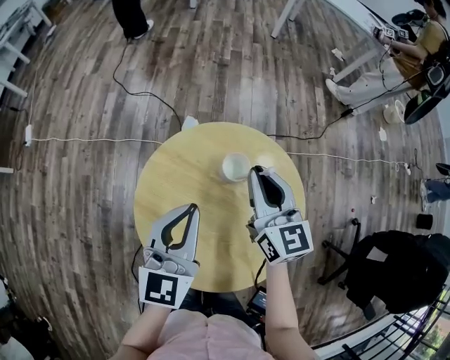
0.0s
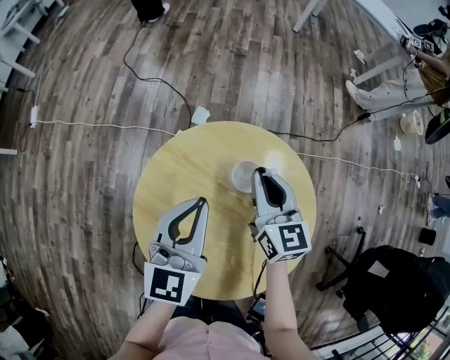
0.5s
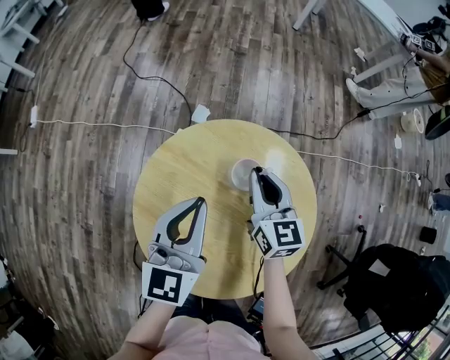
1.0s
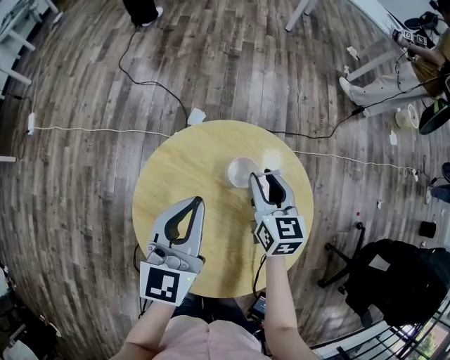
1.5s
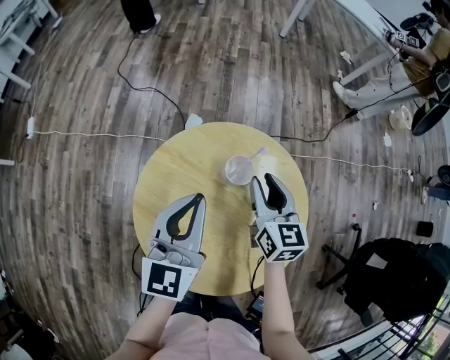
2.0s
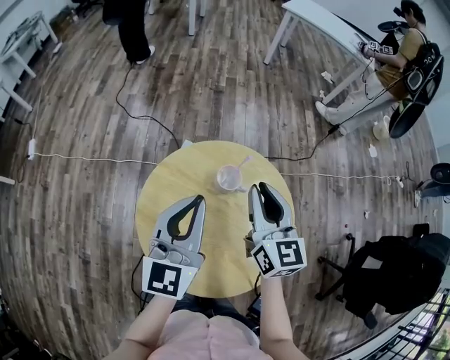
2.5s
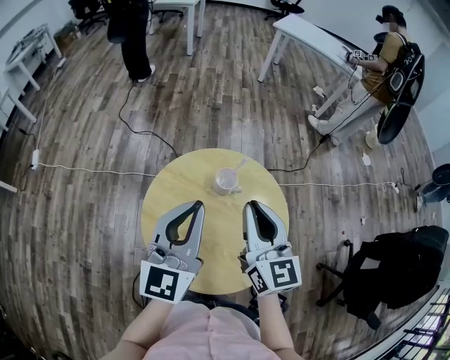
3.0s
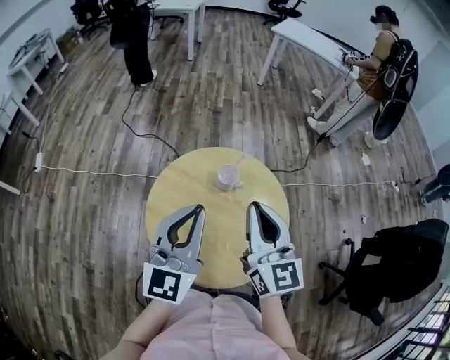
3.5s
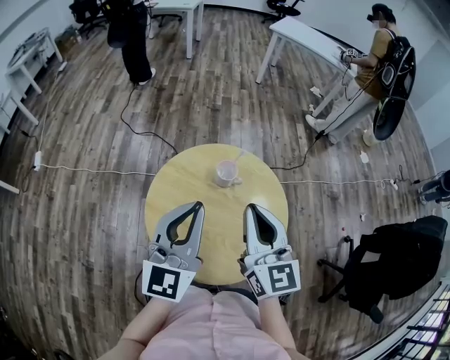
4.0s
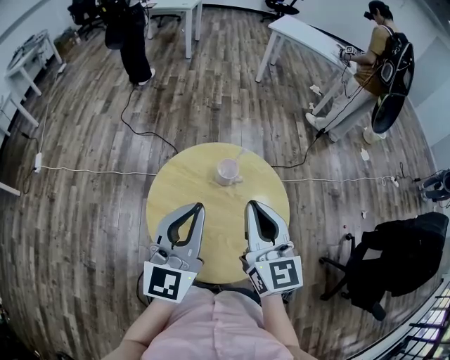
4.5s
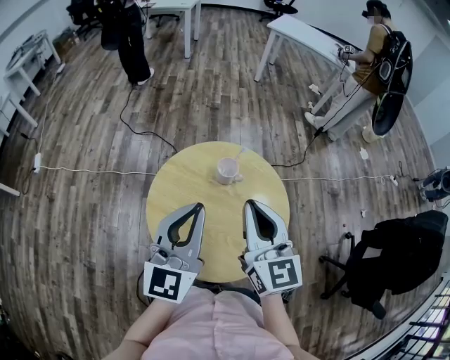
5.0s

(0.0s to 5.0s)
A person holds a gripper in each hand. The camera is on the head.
0.0s - 2.5s: The left gripper moves upward, some 5 cm. The right gripper reaches about 10 cm downward, then returns.
2.5s - 5.0s: Both grippers travel together backward and upward, approximately 15 cm.

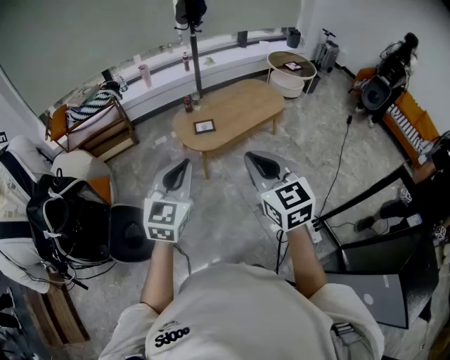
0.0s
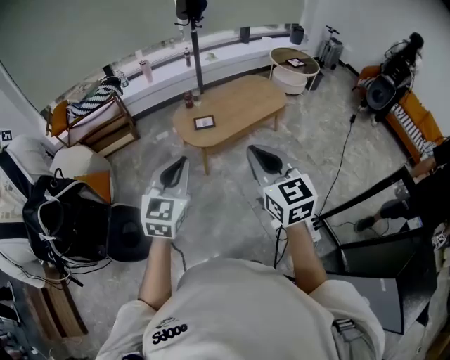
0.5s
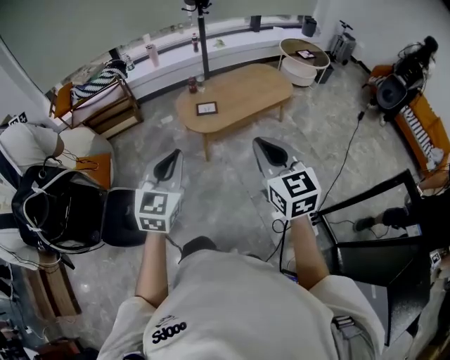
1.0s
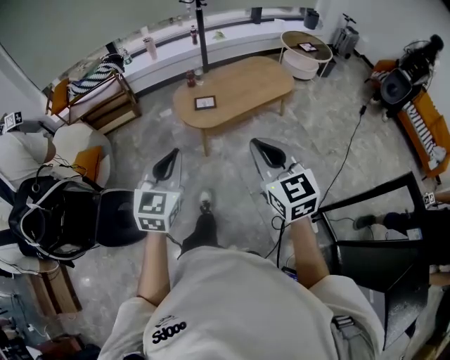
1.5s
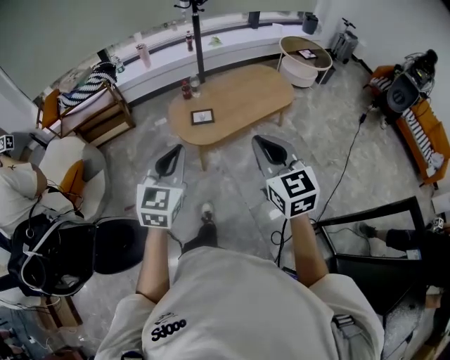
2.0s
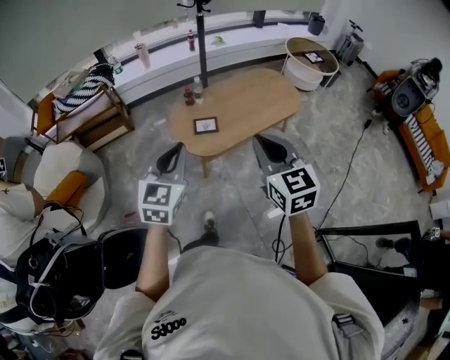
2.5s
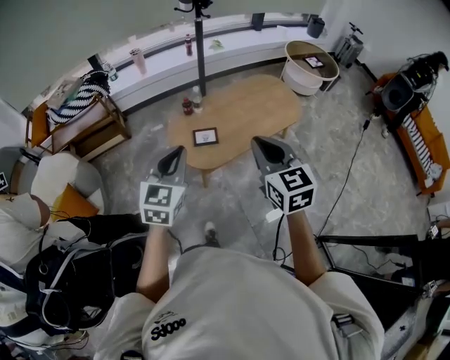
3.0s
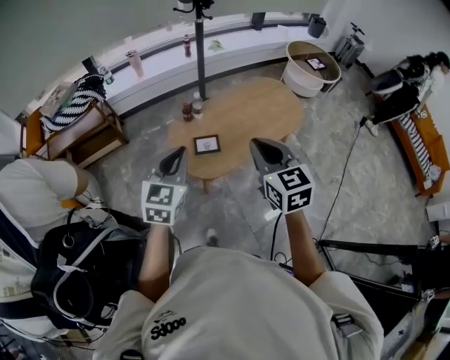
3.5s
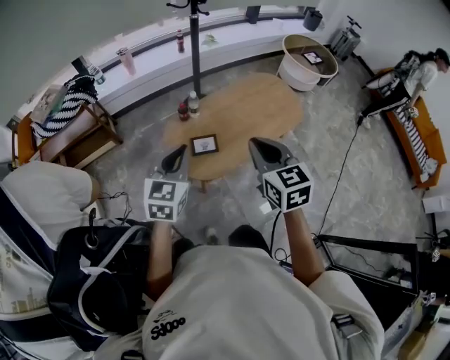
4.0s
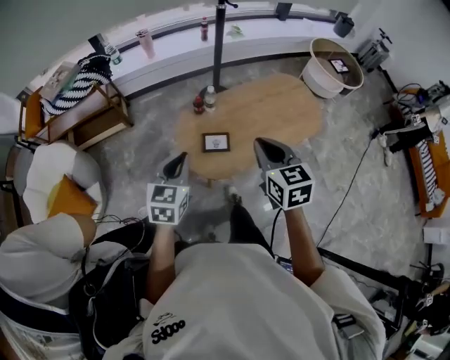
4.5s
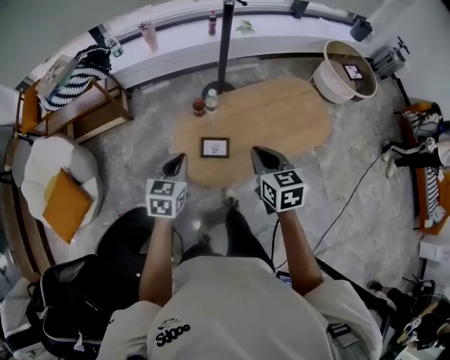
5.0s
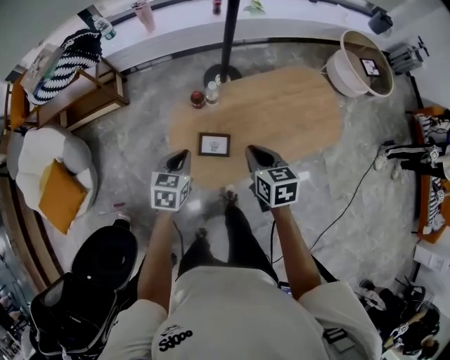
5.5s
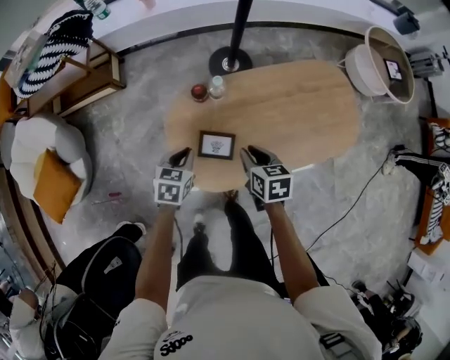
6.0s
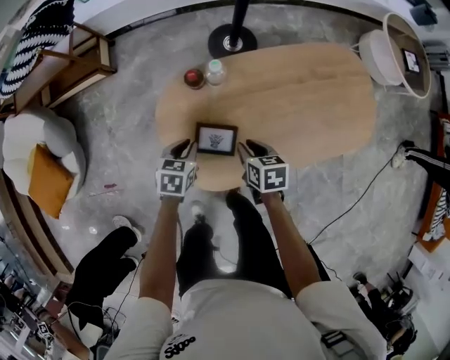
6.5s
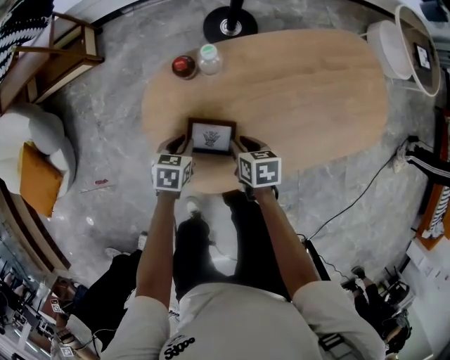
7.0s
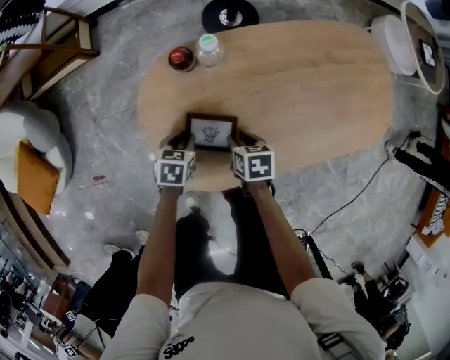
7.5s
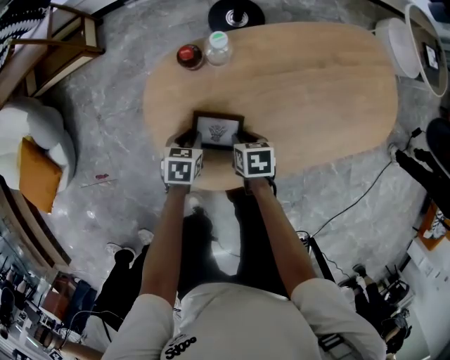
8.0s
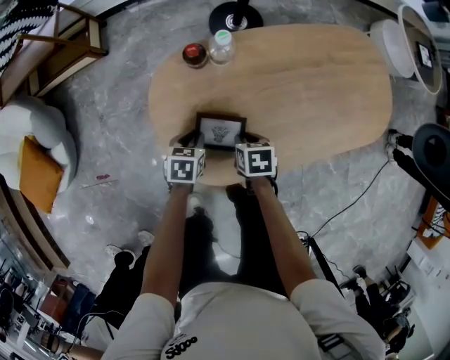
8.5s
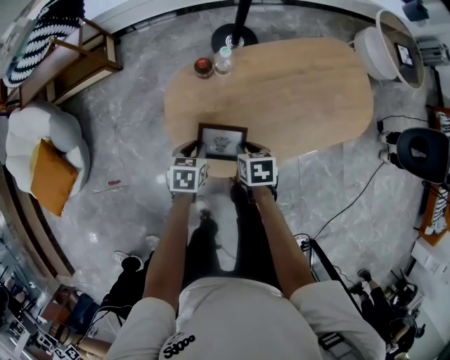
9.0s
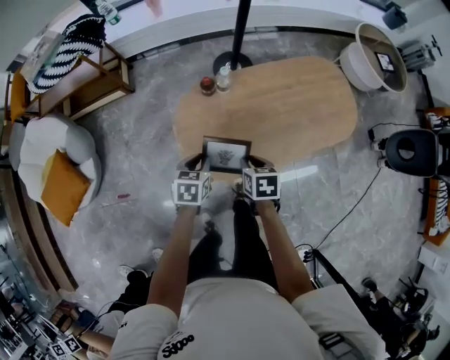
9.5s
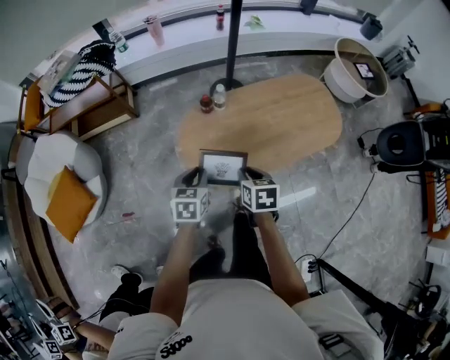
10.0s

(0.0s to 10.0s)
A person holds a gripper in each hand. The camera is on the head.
0.0s - 2.0s: The left gripper goes about 15 cm forward, while the right gripper travels forward and to the right by approximately 20 cm.
2.0s - 4.0s: The two grippers go roughly 35 cm forward.
4.0s - 6.0s: The grippers both shift downward and forward by approximately 50 cm. The right gripper turns by some 40 degrees; the left gripper angles its fingers downward, by roughly 30 degrees.
6.0s - 8.0s: The two grippers go some 25 cm downward. The right gripper rotates approximately 20 degrees.
8.0s - 10.0s: Both grippers travel together upward and backward, approximately 40 cm. The right gripper swivels roughly 20 degrees, while the left gripper turns by about 20 degrees.

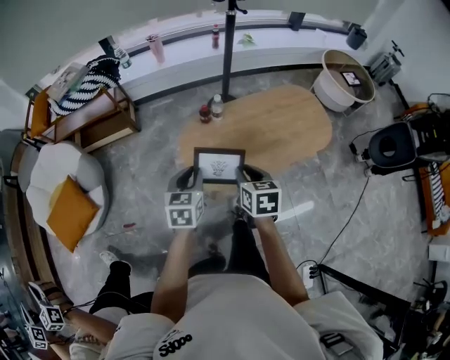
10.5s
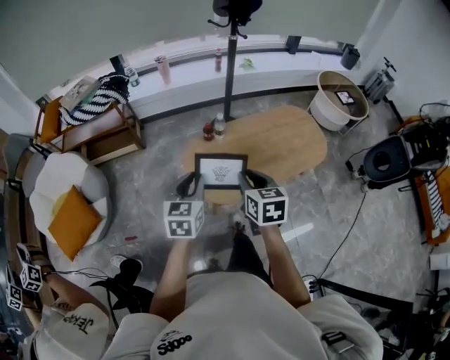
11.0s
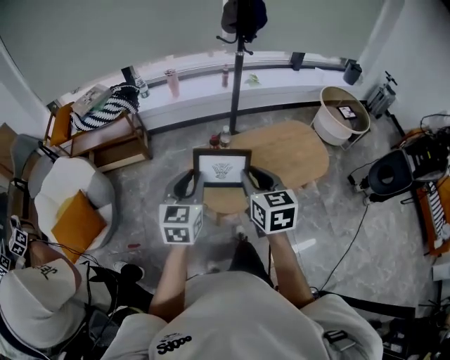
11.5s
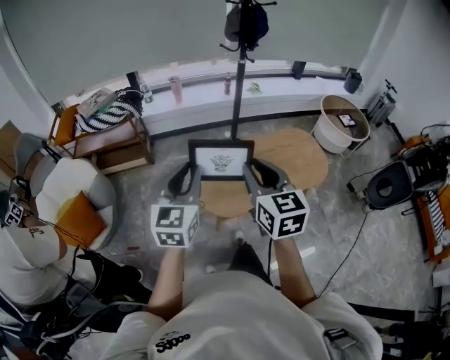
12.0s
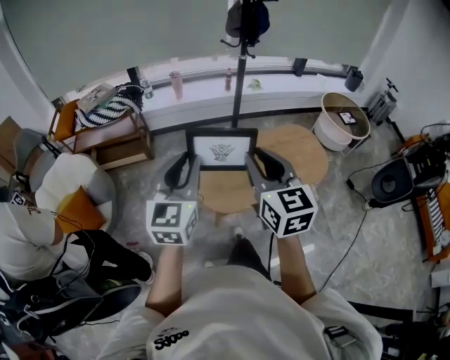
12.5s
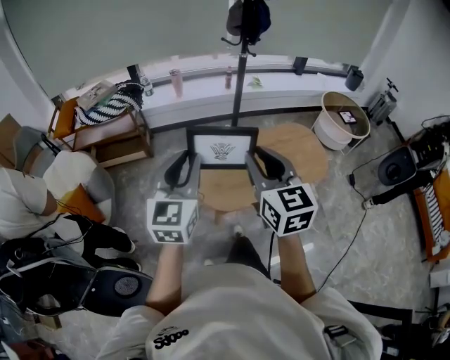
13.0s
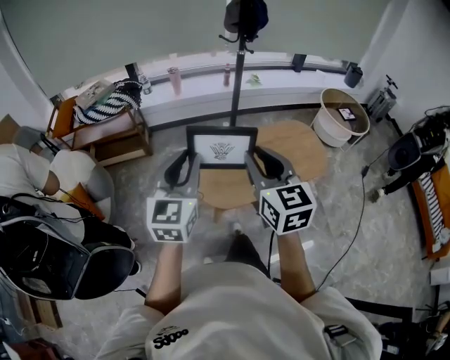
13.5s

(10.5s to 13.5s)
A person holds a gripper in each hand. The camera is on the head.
10.5s - 12.0s: Both grippers move upward, roughly 25 cm. The right gripper swivels about 30 degrees, while the left gripper turns by about 30 degrees.
12.0s - 13.5s: The grippers make only small movements.

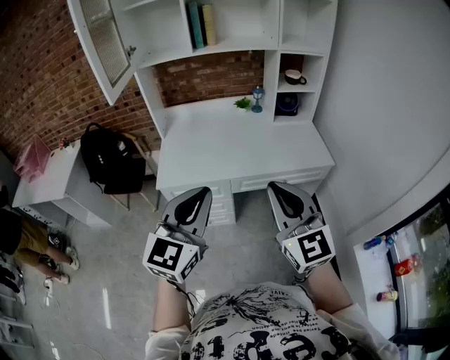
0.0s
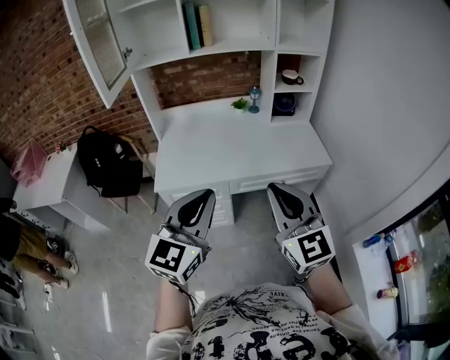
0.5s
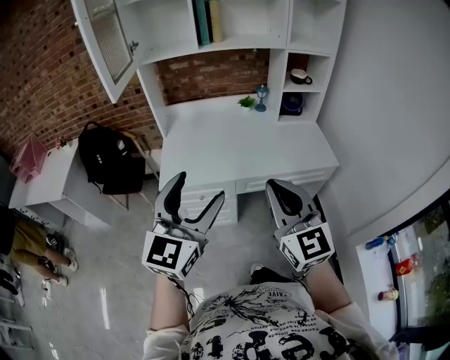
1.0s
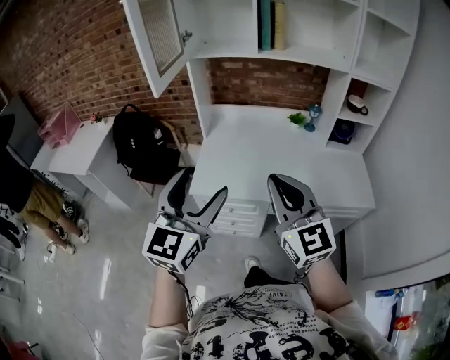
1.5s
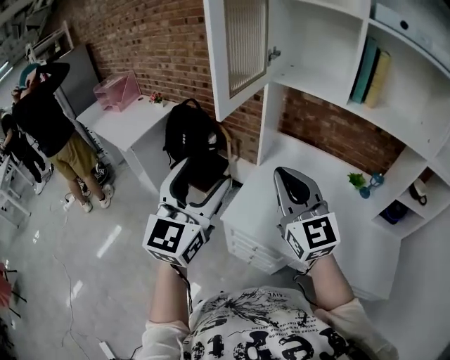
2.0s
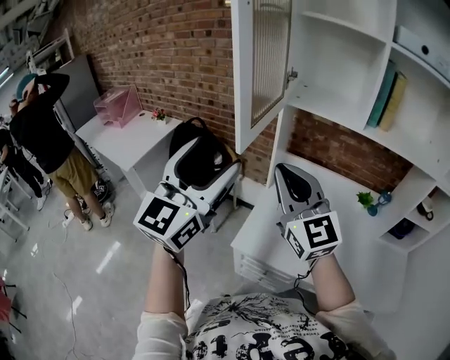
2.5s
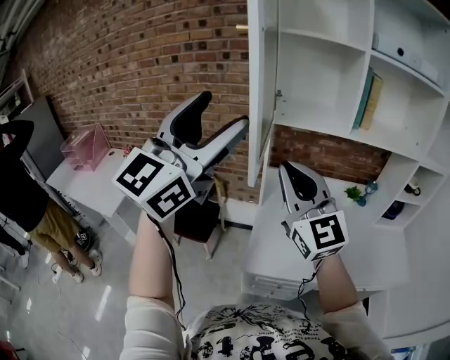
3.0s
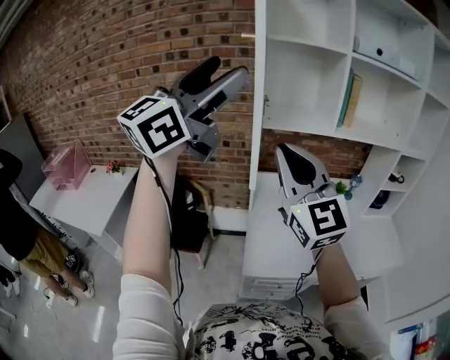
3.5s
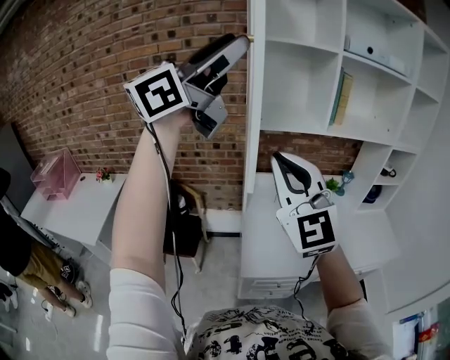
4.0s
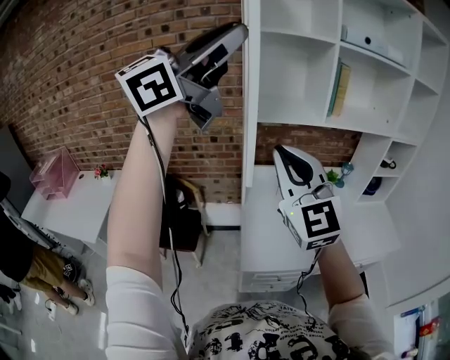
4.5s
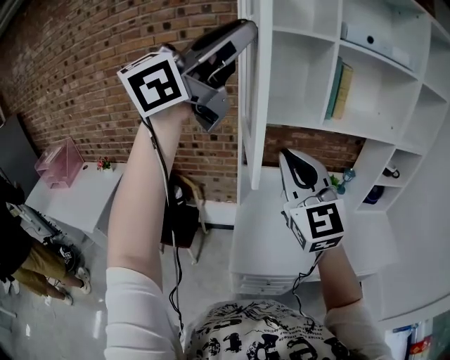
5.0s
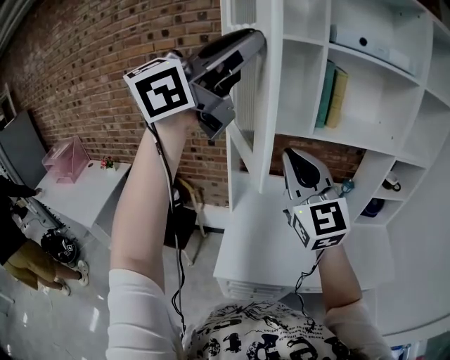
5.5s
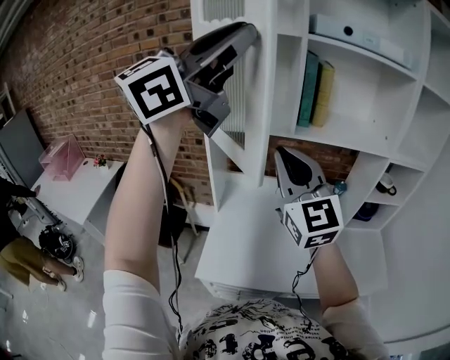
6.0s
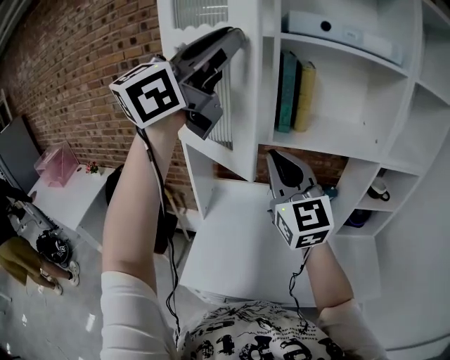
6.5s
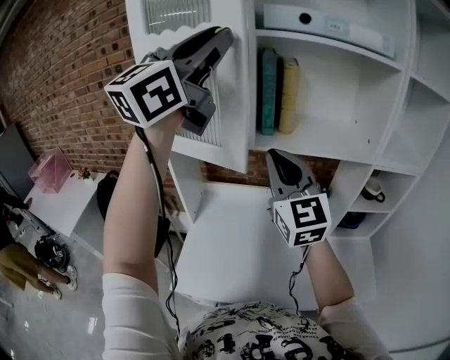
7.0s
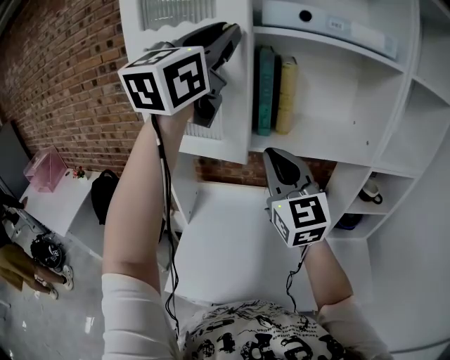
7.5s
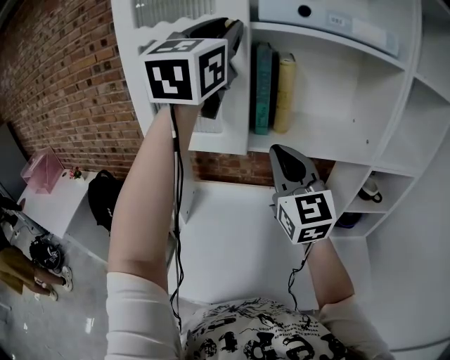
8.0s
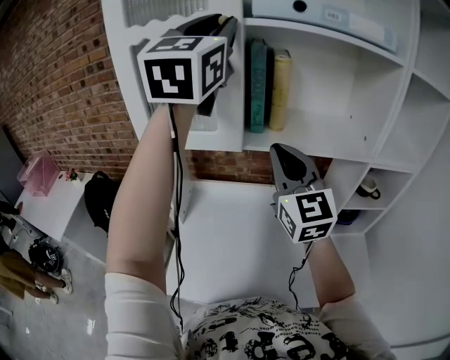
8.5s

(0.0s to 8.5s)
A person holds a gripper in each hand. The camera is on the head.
0.0s - 2.0s: The left gripper shifts by roughly 40 cm, turns by approximately 40 degrees, and opens its fingers. The right gripper ends up about 50 cm from where it was, and rotates some 30 degrees.
2.0s - 4.0s: The left gripper heads upward, covering approximately 30 cm, rotates approximately 70 degrees, and closes up. The right gripper changes place by some 25 cm, and swivels about 40 degrees.
4.0s - 6.5s: Both grippers move to the right and forward, some 35 cm. The left gripper closes.
6.5s - 8.5s: The right gripper goes roughly 15 cm forward and to the right; the left gripper goes about 15 cm forward, and changes its angle by some 40 degrees.
